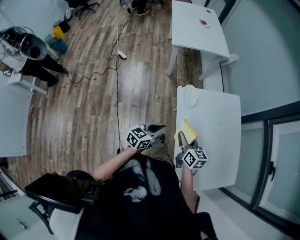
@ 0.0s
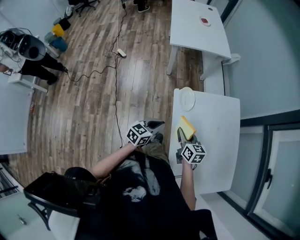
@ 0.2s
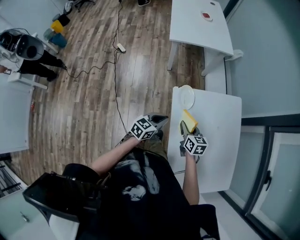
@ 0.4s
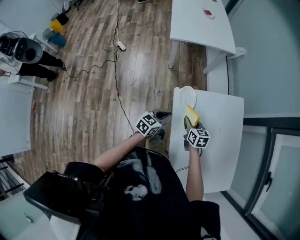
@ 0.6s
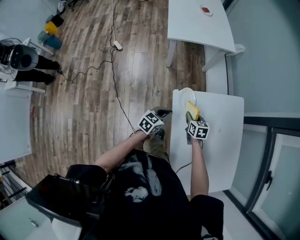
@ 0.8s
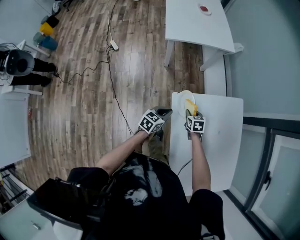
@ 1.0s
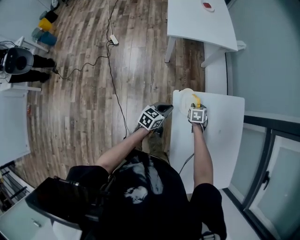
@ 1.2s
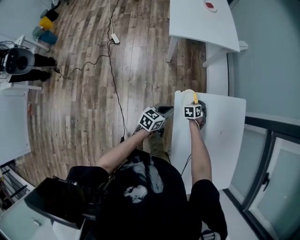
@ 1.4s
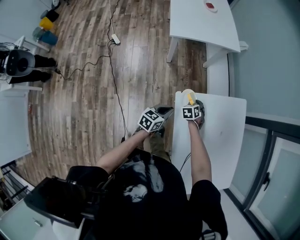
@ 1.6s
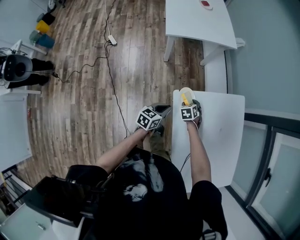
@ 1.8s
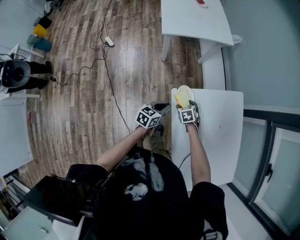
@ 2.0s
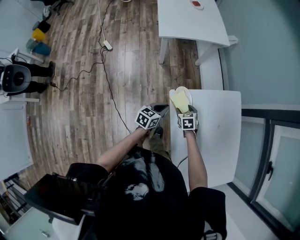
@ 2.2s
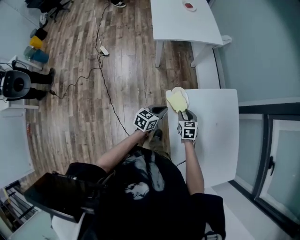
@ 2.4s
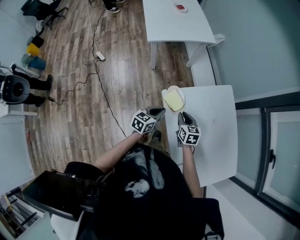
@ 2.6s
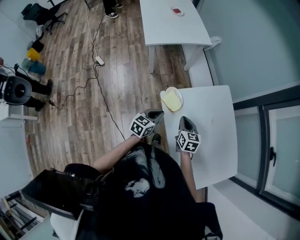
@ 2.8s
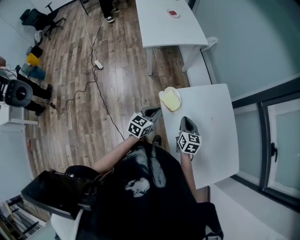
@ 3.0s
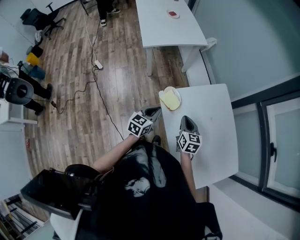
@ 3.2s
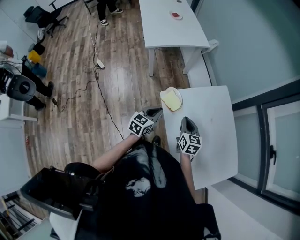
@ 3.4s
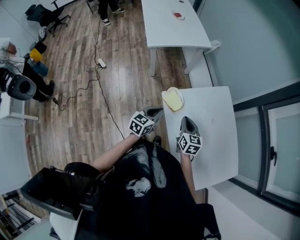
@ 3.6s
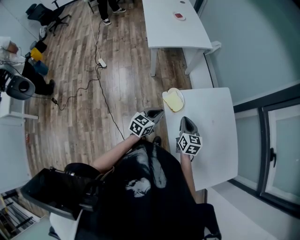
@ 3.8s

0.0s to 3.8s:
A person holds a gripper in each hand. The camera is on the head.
0.0s to 1.2s: Both grippers move forward and downward, some 30 cm. The right gripper points its fingers about 40 degrees further downward.
1.2s to 2.6s: The left gripper shifts by about 5 cm, while the right gripper moves upward and backward, some 15 cm, swivels approximately 30 degrees, and opens, then closes once more.
2.6s to 3.8s: The right gripper goes approximately 5 cm upward.

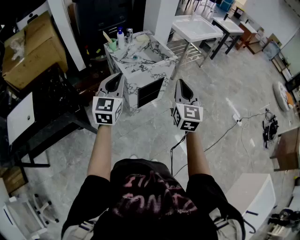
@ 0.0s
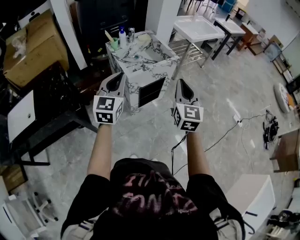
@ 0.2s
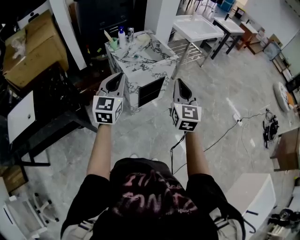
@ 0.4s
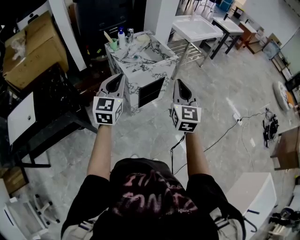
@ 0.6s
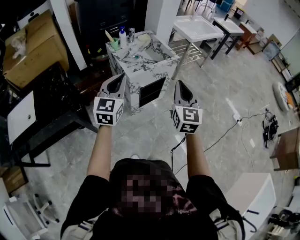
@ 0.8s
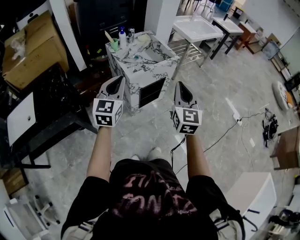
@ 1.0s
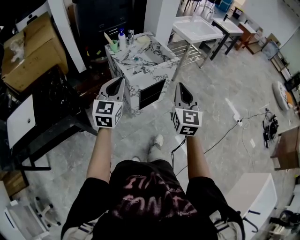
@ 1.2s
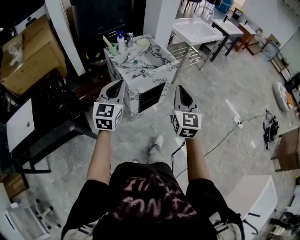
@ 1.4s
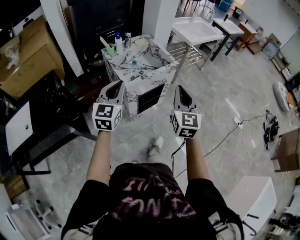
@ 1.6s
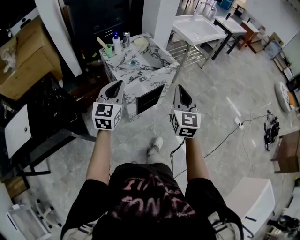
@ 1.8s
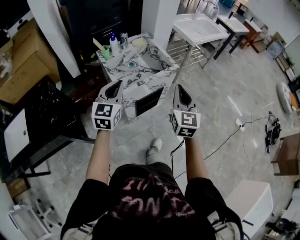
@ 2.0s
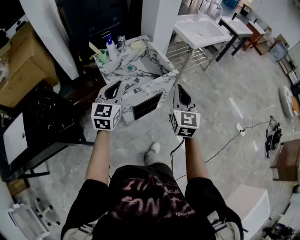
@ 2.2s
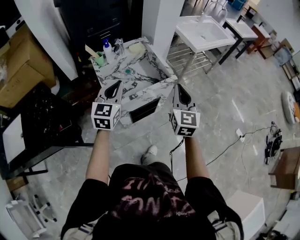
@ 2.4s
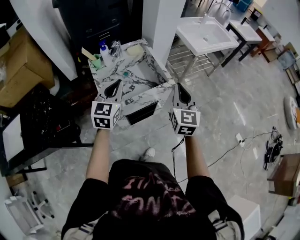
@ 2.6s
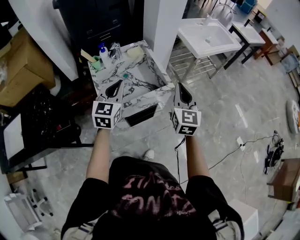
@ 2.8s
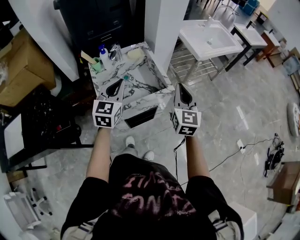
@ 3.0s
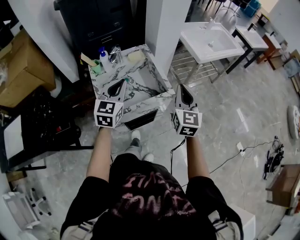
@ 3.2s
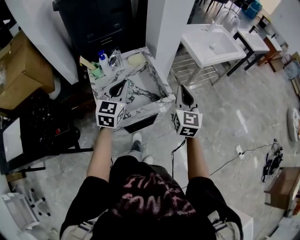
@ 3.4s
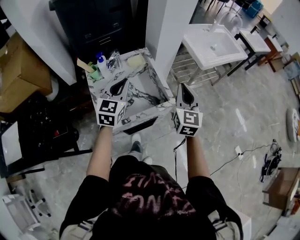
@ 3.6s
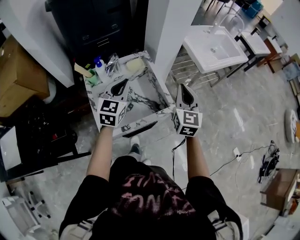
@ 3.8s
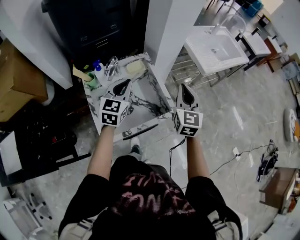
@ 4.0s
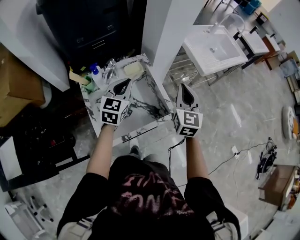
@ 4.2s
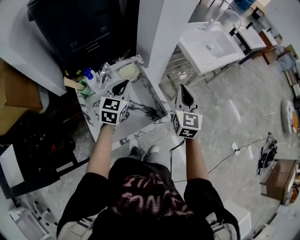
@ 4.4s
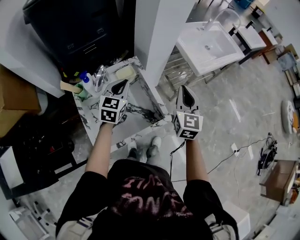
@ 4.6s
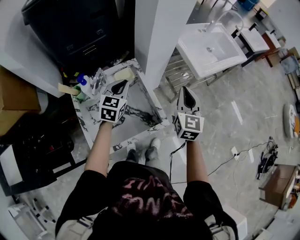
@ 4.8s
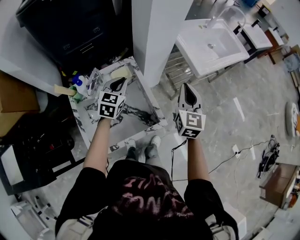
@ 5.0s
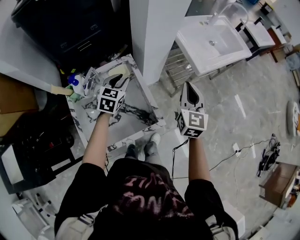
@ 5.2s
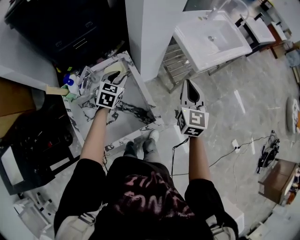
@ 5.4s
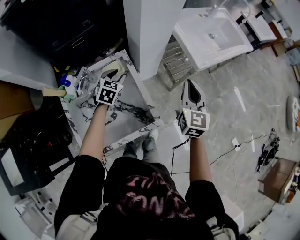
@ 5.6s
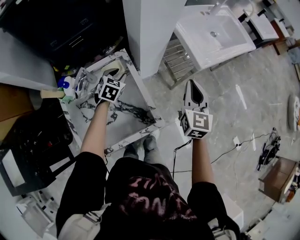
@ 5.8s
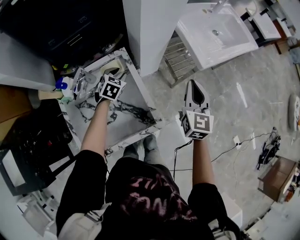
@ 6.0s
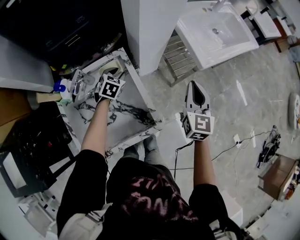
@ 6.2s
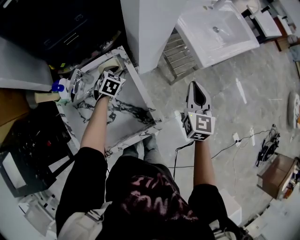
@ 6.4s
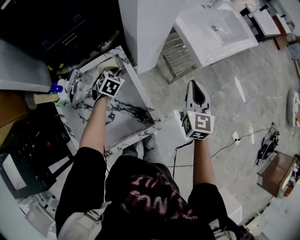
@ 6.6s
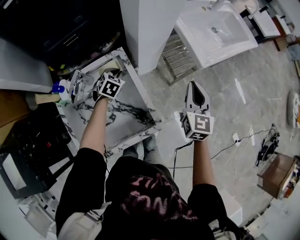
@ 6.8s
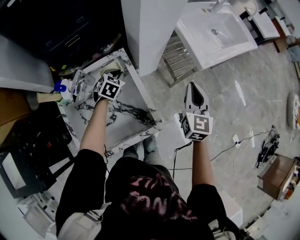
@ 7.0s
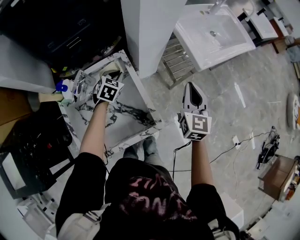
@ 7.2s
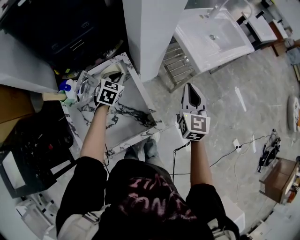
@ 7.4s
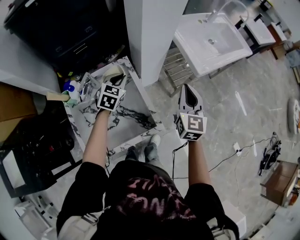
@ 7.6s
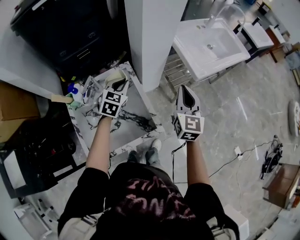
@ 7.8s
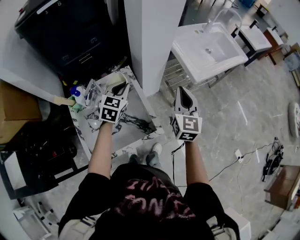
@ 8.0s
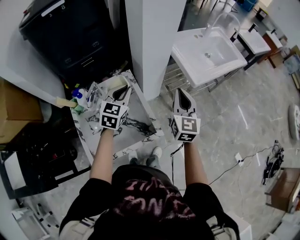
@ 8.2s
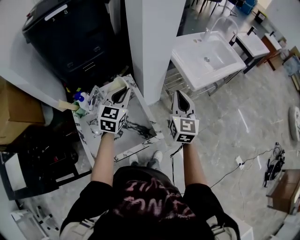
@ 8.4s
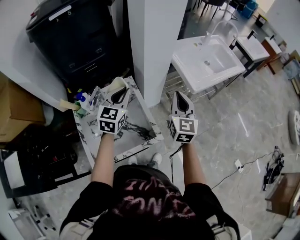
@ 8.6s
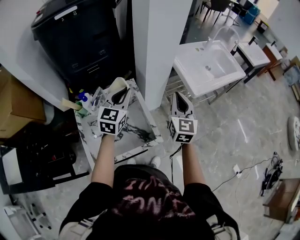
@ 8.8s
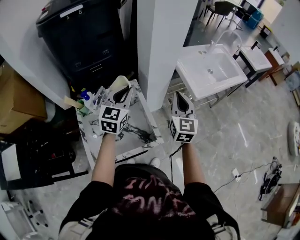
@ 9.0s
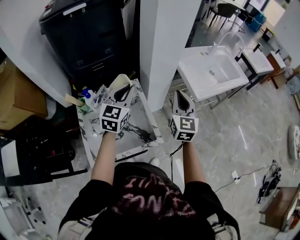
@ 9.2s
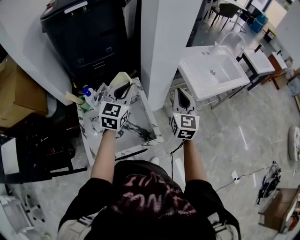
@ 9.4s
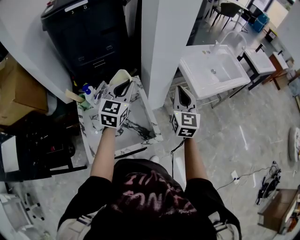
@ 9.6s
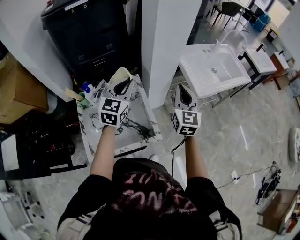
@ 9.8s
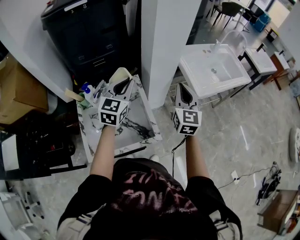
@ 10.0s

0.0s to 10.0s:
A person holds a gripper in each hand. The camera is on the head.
0.0s to 1.4s: The grippers make only small movements.
1.4s to 2.8s: Both grippers move forward, about 30 cm.
2.8s to 4.2s: Both grippers travel together forward, approximately 20 cm.
4.2s to 5.8s: The right gripper travels forward and to the right by approximately 15 cm; the left gripper travels downward and forward by some 25 cm, swivels roughly 30 degrees, and opens its fingers.
5.8s to 7.2s: The left gripper closes up.
7.2s to 8.6s: The left gripper travels upward by about 25 cm, and angles its fingers upward, by about 30 degrees. Meanwhile the right gripper goes some 10 cm upward.
8.6s to 10.0s: The grippers move only a little.

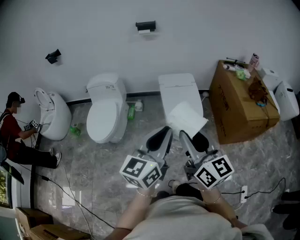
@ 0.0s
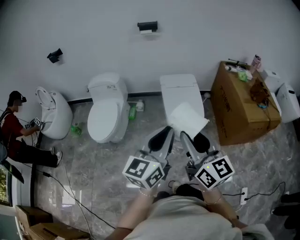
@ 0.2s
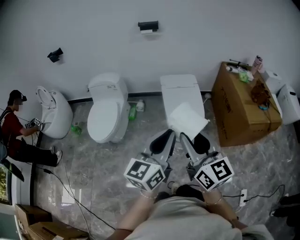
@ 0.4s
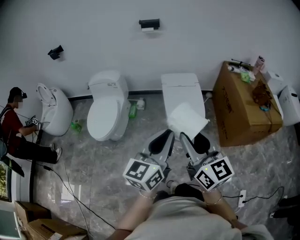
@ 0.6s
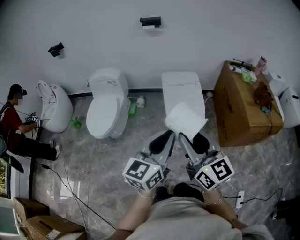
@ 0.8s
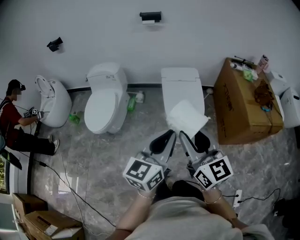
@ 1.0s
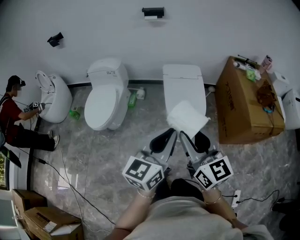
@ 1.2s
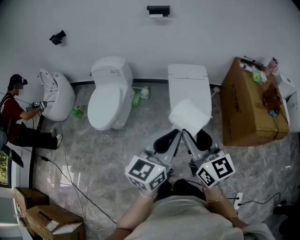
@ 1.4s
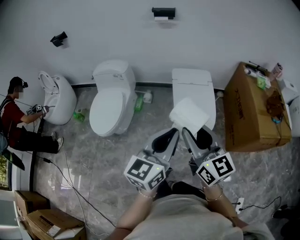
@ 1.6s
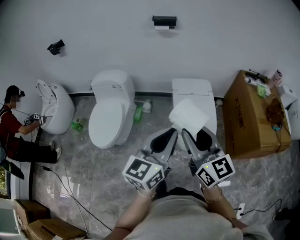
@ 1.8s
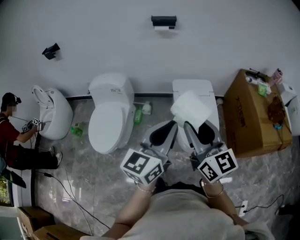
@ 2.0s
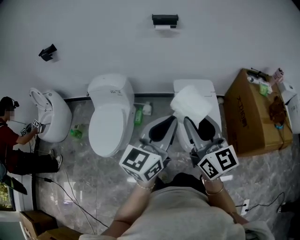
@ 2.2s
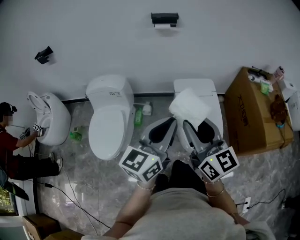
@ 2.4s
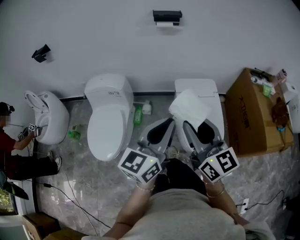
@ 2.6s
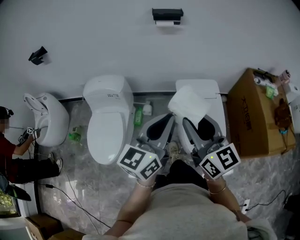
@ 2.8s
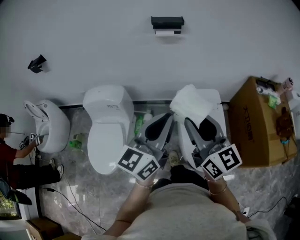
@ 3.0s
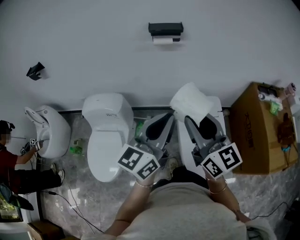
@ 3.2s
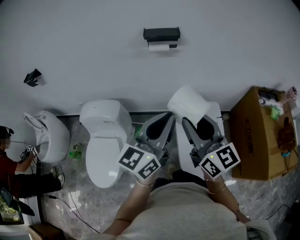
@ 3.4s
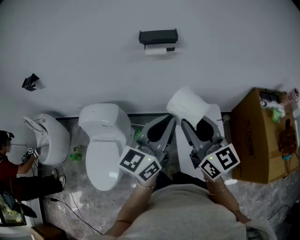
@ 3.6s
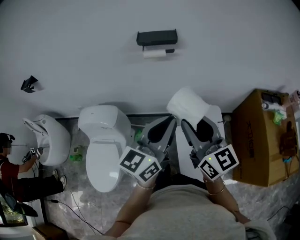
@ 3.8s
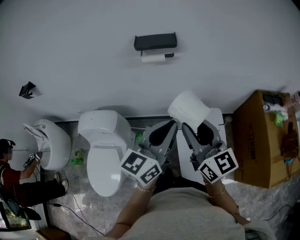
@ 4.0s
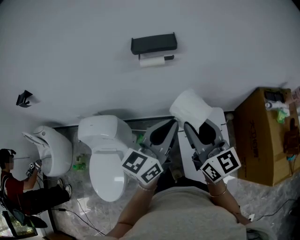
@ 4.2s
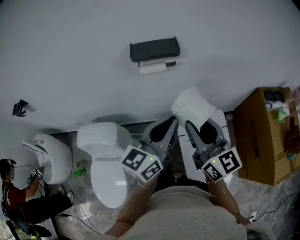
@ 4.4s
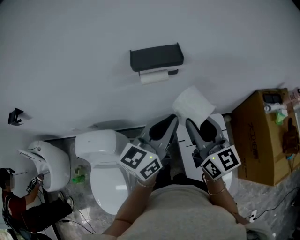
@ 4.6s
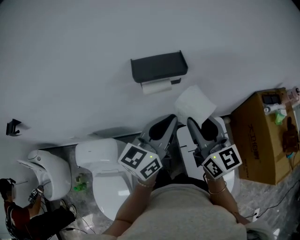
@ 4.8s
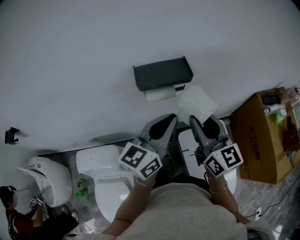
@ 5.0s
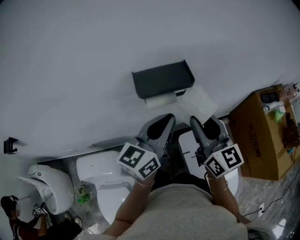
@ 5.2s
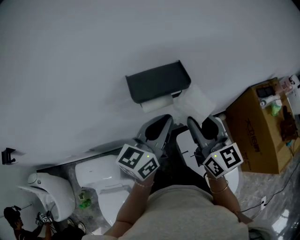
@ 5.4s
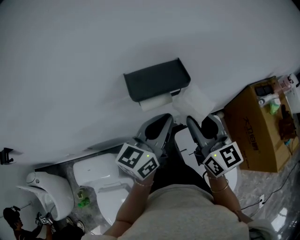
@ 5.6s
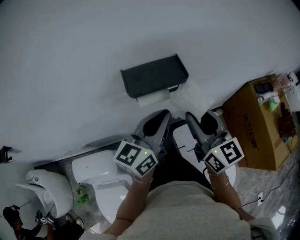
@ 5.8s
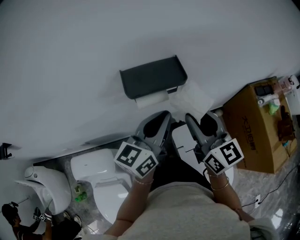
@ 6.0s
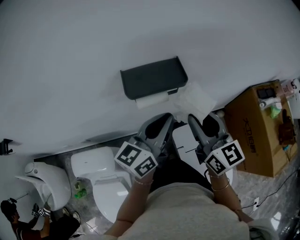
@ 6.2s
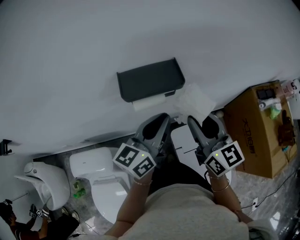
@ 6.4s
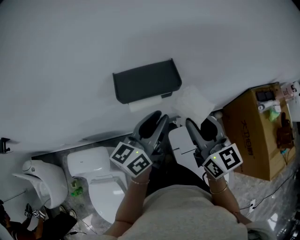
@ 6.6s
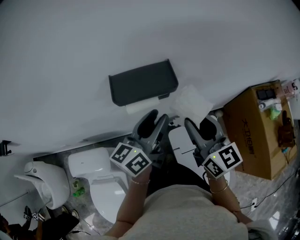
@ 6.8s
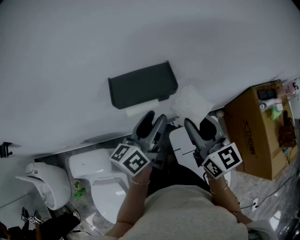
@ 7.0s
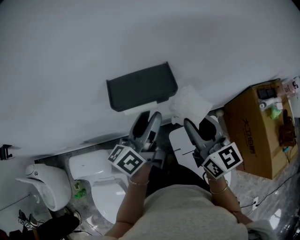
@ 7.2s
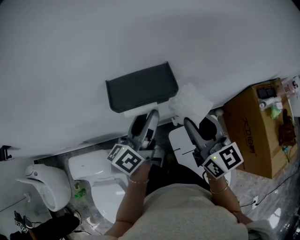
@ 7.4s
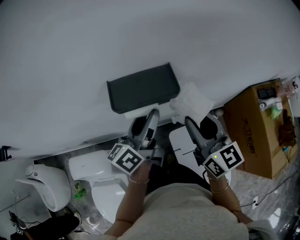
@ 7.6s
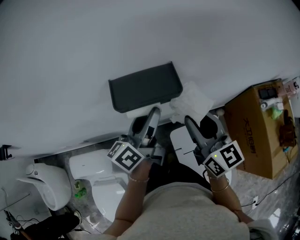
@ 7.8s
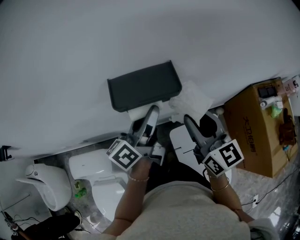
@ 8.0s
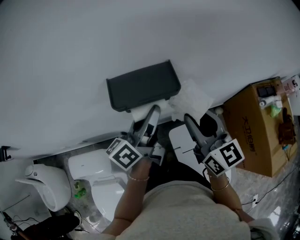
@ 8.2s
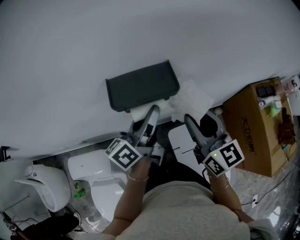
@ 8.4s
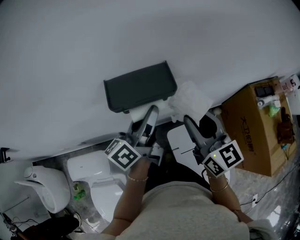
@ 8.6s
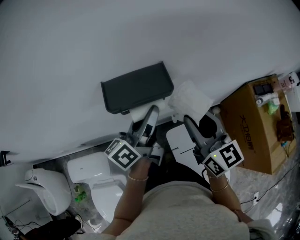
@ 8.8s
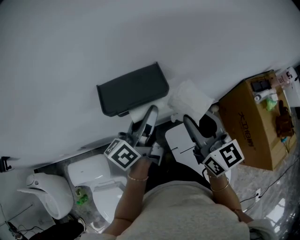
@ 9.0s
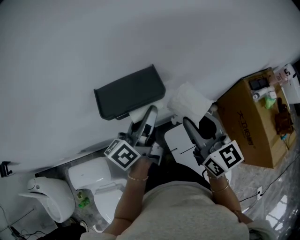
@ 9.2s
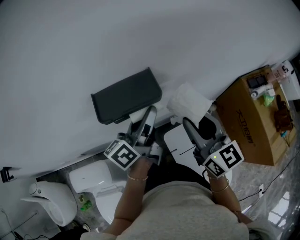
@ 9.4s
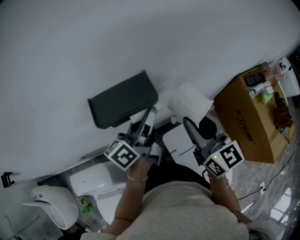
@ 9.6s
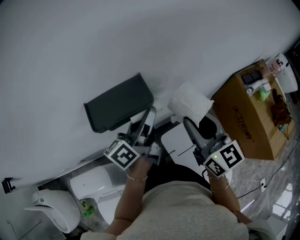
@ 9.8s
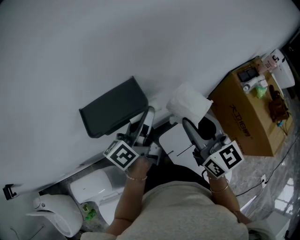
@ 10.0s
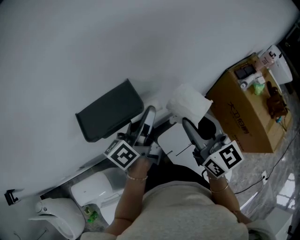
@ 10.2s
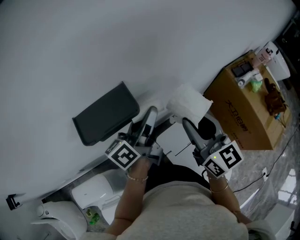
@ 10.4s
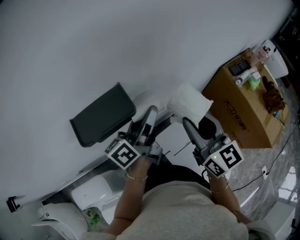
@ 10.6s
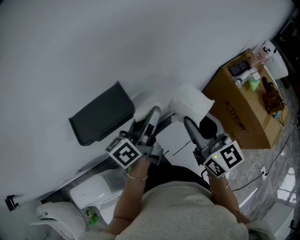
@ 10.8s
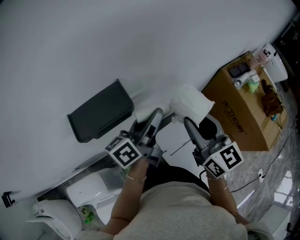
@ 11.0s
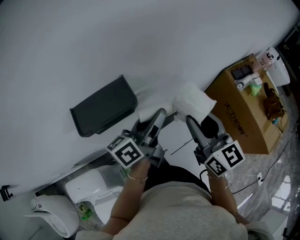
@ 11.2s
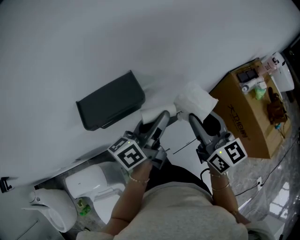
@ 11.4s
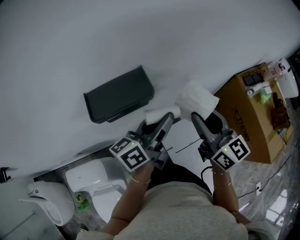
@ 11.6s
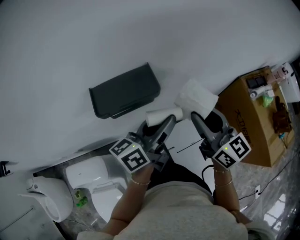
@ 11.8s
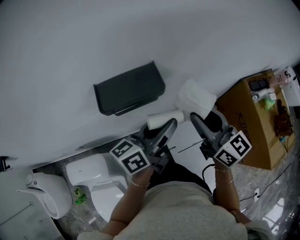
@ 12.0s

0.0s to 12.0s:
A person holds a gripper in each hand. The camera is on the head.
0.0s to 1.6s: Both grippers move forward, approximately 15 cm.
1.6s to 3.0s: Both grippers move forward, approximately 35 cm.
3.0s to 4.4s: Both grippers move forward, approximately 30 cm.
4.4s to 6.0s: The right gripper moves forward, about 15 cm, while the left gripper is displaced forward and to the left by some 15 cm.
6.0s to 7.6s: The left gripper shifts some 5 cm forward, changes its angle by some 30 degrees, and opens its fingers.
7.6s to 9.0s: There are only small adjustments of the grippers.
9.0s to 10.4s: Both grippers travel together to the right, about 5 cm.
10.4s to 12.0s: The left gripper goes roughly 10 cm backward.
